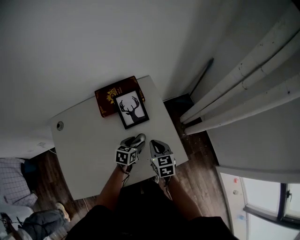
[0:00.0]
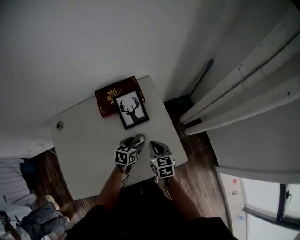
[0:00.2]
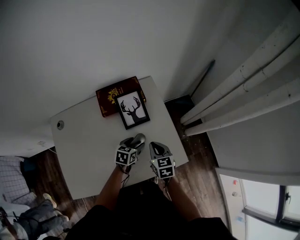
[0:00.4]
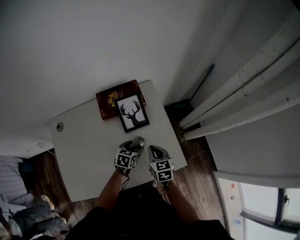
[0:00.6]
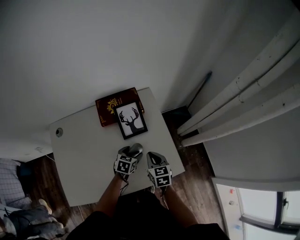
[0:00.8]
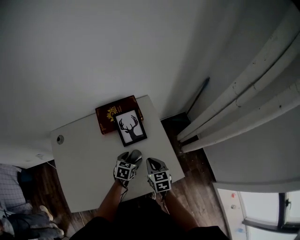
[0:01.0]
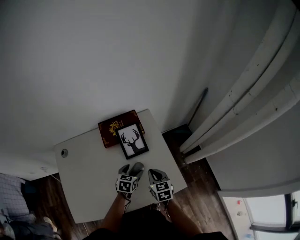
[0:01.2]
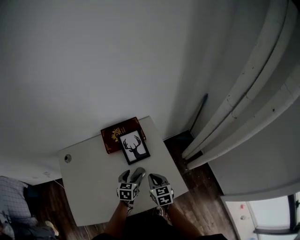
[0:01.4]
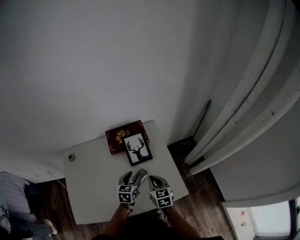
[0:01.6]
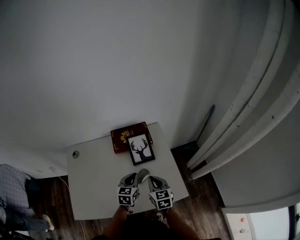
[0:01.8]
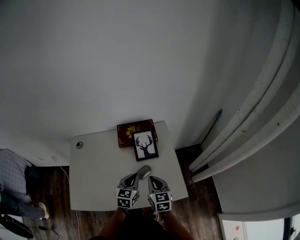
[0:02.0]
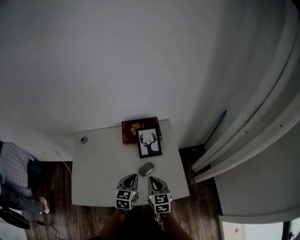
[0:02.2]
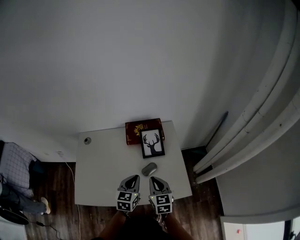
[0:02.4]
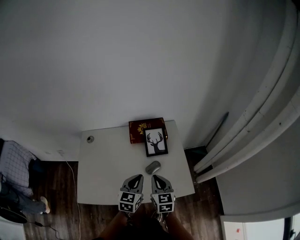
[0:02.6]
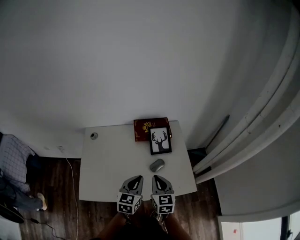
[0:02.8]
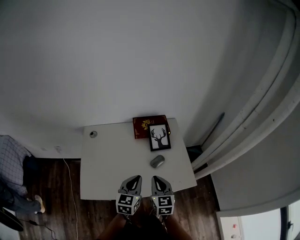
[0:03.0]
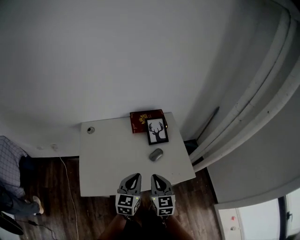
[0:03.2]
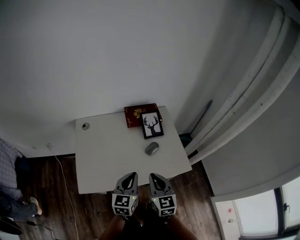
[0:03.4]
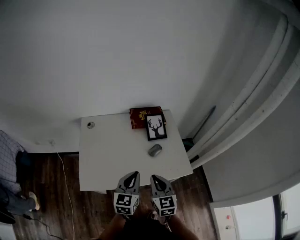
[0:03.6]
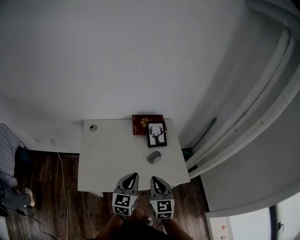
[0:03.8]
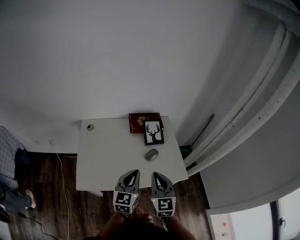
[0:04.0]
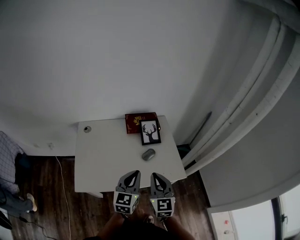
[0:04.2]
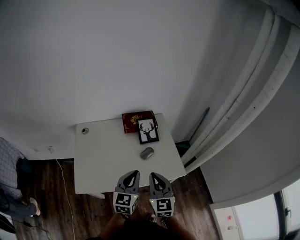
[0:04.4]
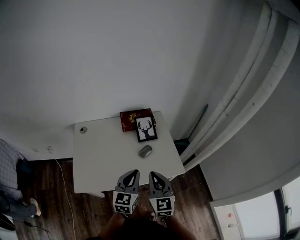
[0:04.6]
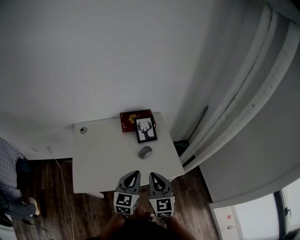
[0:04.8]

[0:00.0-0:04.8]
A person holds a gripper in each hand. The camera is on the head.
0.0 to 1.6 s: The left gripper travels upward by roughly 10 cm, and changes its angle by some 20 degrees.
1.6 to 3.2 s: The right gripper shifts some 25 cm backward, to the left and upward, while the left gripper heads backward, upward and to the left, covering roughly 25 cm, swivels about 20 degrees, and closes up.
3.2 to 4.8 s: The left gripper heads to the right, covering approximately 5 cm; the right gripper is displaced upward by roughly 5 cm.

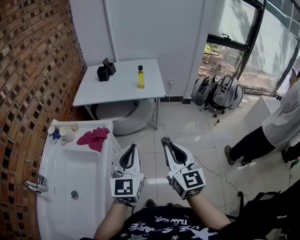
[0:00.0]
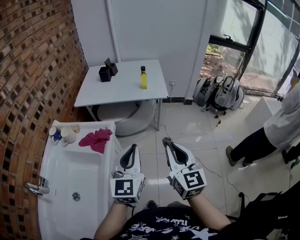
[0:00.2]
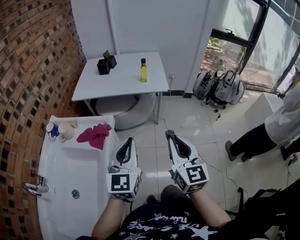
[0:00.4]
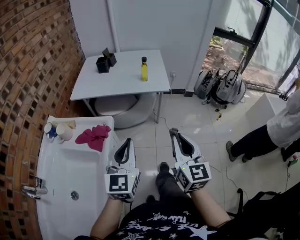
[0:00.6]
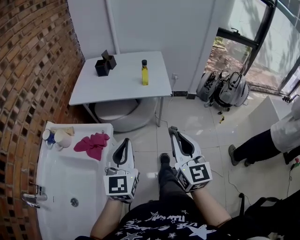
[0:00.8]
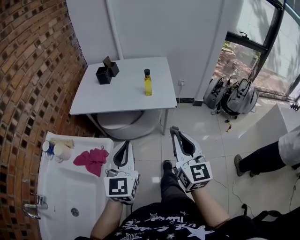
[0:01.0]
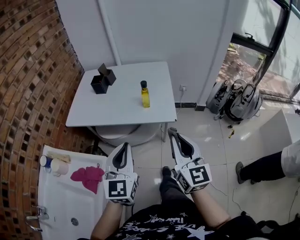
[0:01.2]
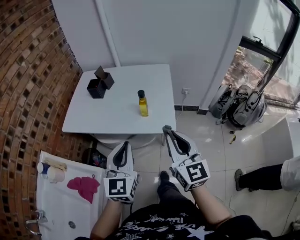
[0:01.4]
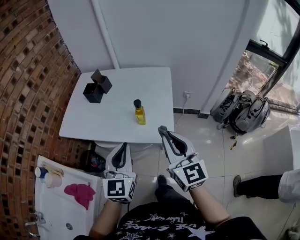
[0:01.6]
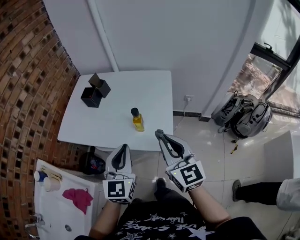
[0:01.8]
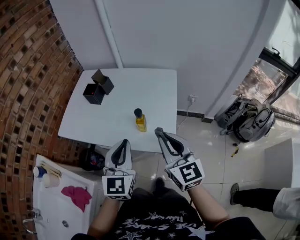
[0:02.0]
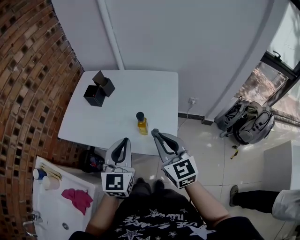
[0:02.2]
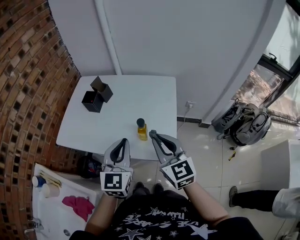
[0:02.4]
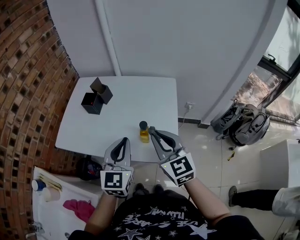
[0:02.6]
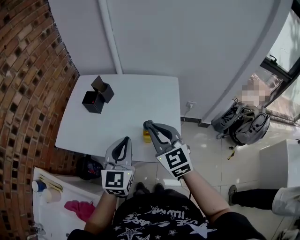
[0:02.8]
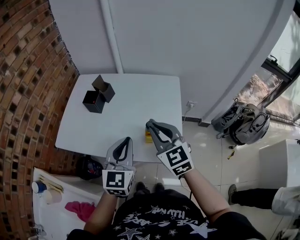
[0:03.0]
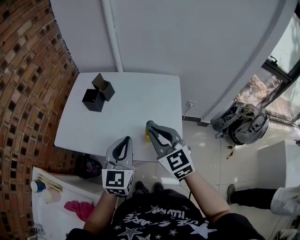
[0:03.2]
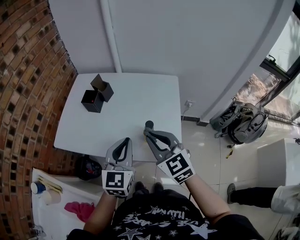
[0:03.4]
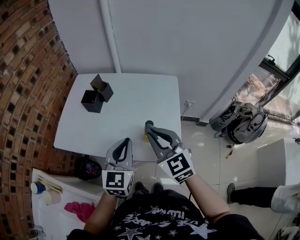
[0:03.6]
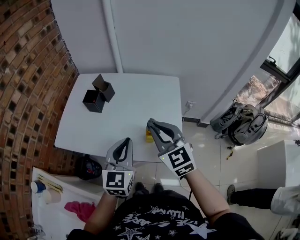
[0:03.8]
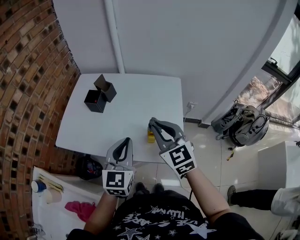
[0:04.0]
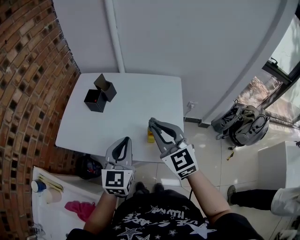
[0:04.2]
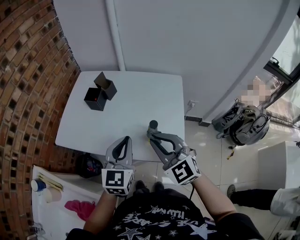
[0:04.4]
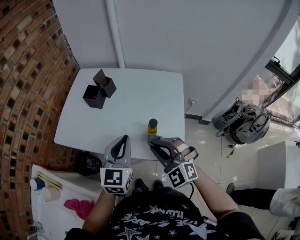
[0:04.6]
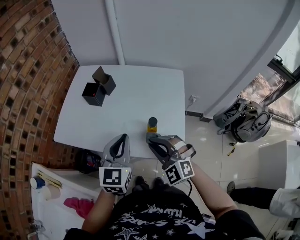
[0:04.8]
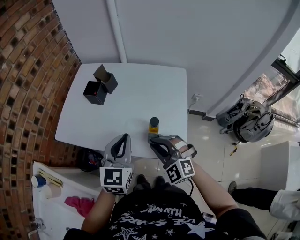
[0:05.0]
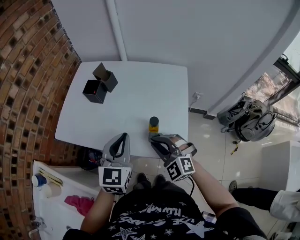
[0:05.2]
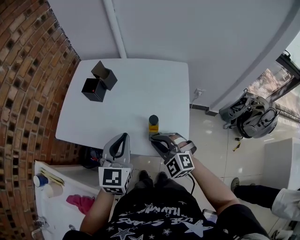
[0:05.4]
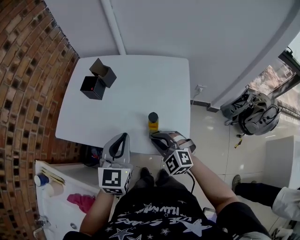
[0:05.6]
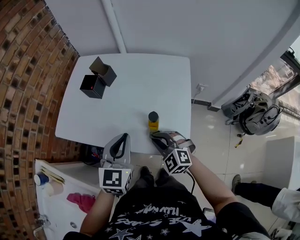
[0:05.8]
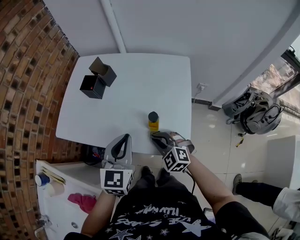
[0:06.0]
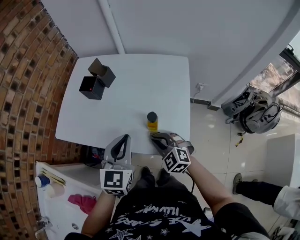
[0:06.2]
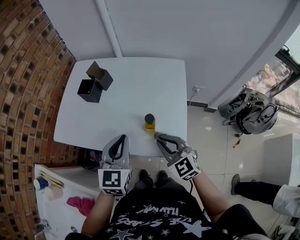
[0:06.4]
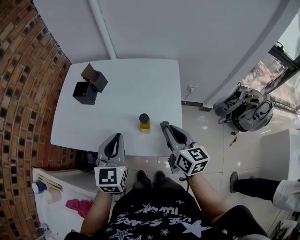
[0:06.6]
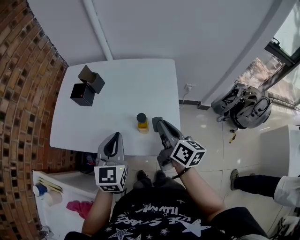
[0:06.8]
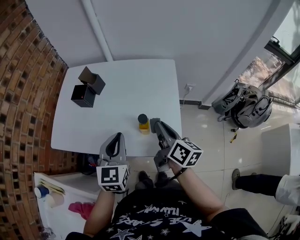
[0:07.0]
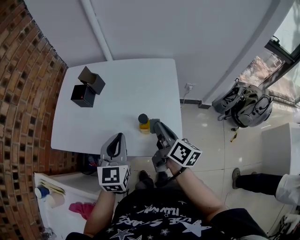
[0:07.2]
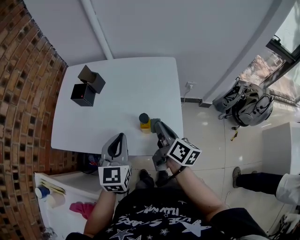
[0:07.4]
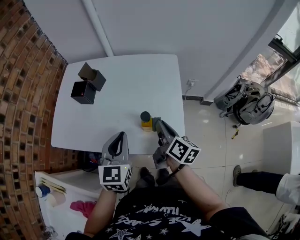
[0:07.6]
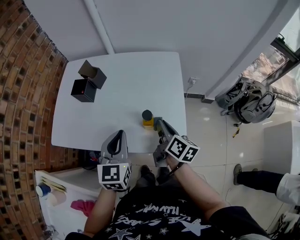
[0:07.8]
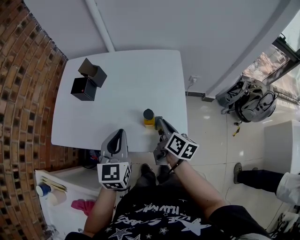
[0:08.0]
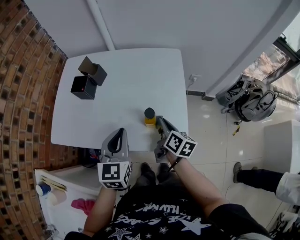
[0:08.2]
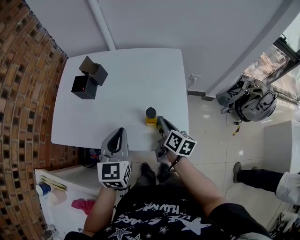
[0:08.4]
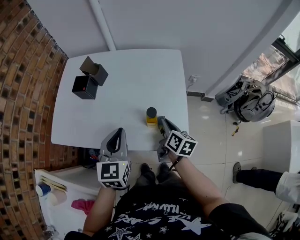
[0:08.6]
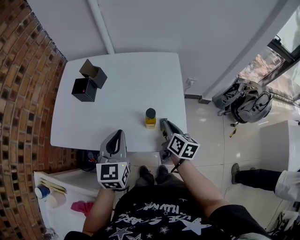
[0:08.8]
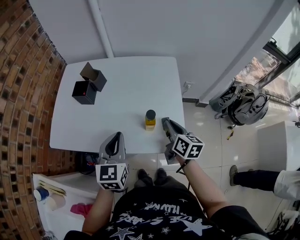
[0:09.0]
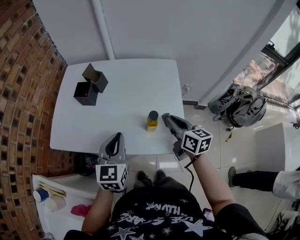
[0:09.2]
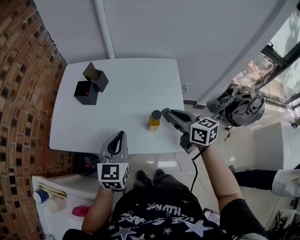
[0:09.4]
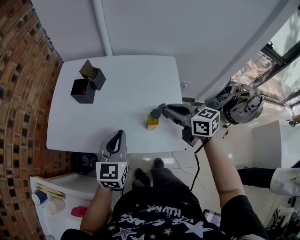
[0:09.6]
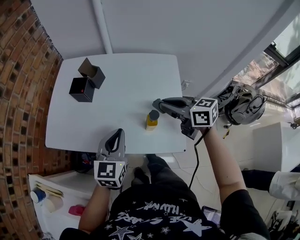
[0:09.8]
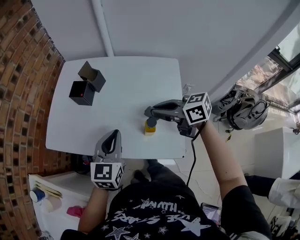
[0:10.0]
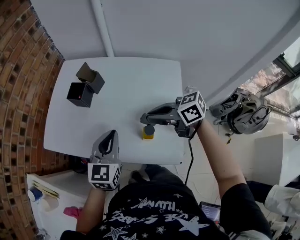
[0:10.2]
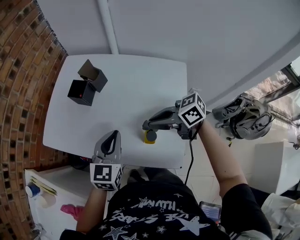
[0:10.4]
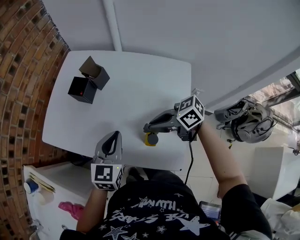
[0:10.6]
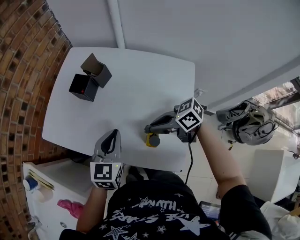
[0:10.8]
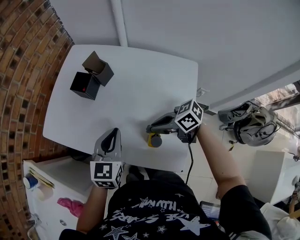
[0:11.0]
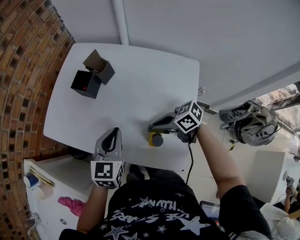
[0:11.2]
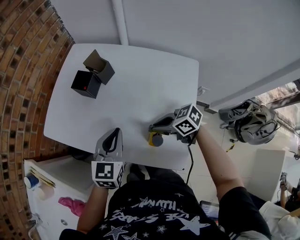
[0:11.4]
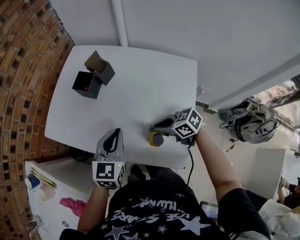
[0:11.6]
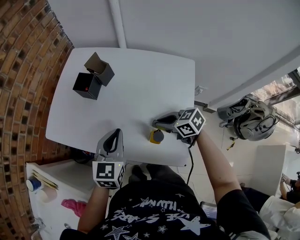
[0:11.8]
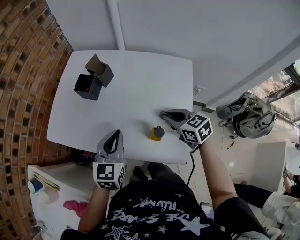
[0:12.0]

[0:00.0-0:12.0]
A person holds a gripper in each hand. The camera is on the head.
0.0 to 1.6 s: The grippers both shift forward by approximately 40 cm.
1.6 to 3.0 s: The left gripper moves forward, approximately 15 cm; the right gripper goes some 20 cm forward and to the left, and swivels about 20 degrees.
3.0 to 4.4 s: The right gripper shifts by some 5 cm.
4.4 to 6.0 s: The right gripper goes approximately 20 cm downward, and rotates roughly 20 degrees.
6.0 to 7.6 s: The right gripper heads to the right and upward, covering some 10 cm, and twists approximately 90 degrees clockwise, seen from behind.
9.0 to 10.4 s: The left gripper shifts by approximately 5 cm, while the right gripper changes place by approximately 10 cm, and swivels about 80 degrees.
10.4 to 12.0 s: The right gripper shifts approximately 5 cm downward, and rotates some 40 degrees.

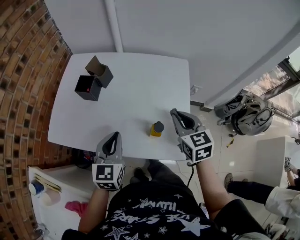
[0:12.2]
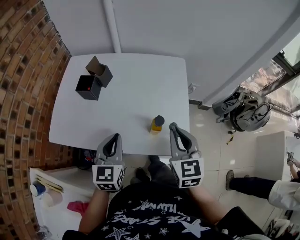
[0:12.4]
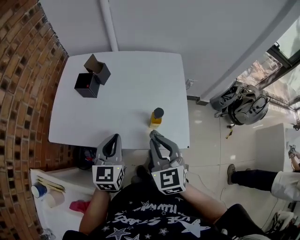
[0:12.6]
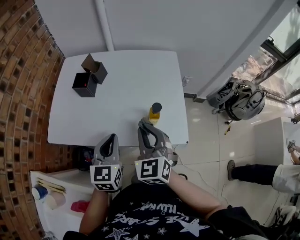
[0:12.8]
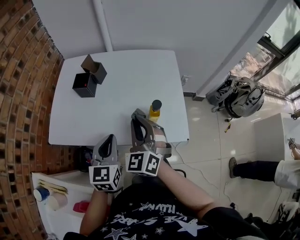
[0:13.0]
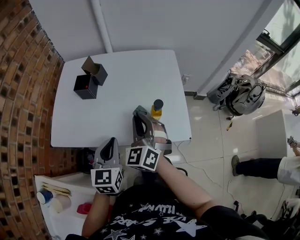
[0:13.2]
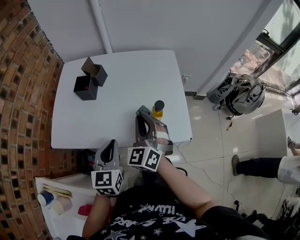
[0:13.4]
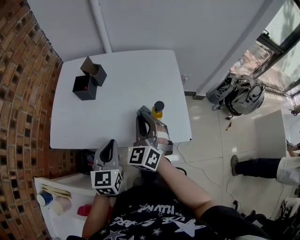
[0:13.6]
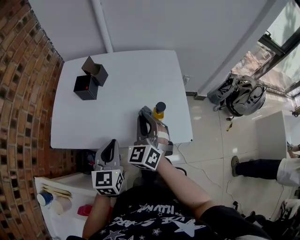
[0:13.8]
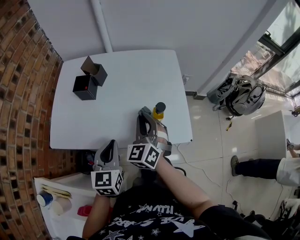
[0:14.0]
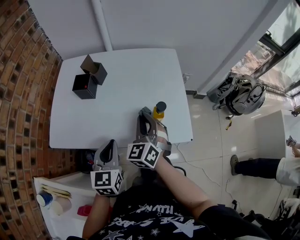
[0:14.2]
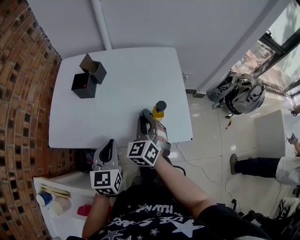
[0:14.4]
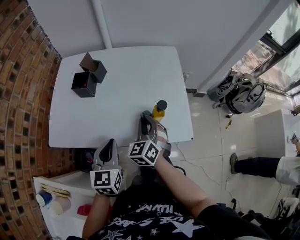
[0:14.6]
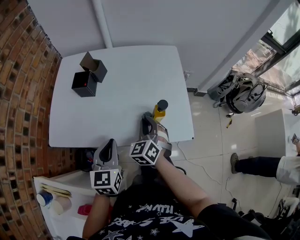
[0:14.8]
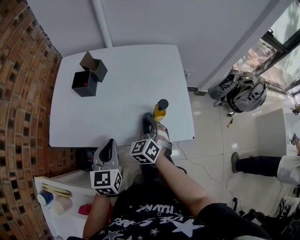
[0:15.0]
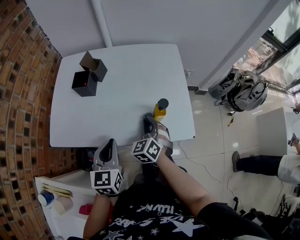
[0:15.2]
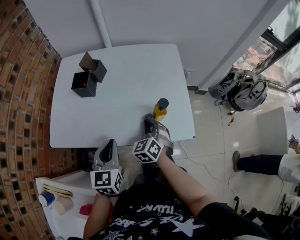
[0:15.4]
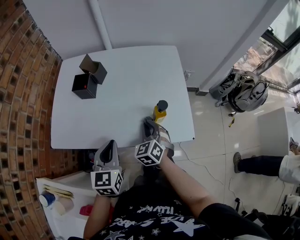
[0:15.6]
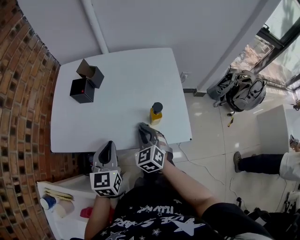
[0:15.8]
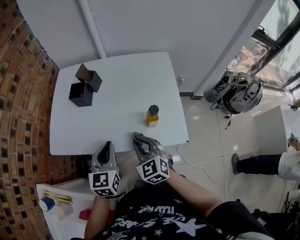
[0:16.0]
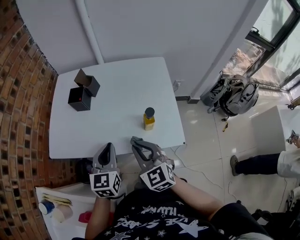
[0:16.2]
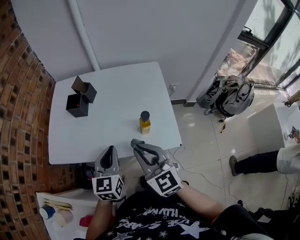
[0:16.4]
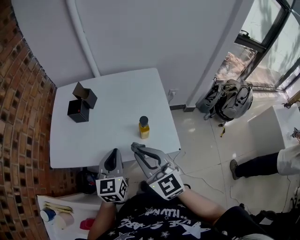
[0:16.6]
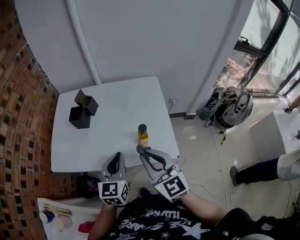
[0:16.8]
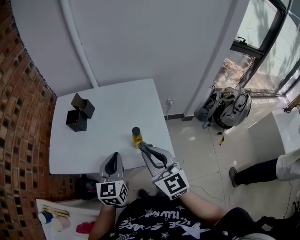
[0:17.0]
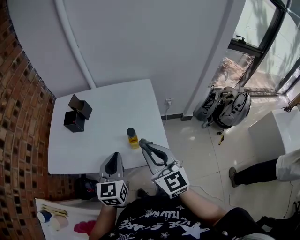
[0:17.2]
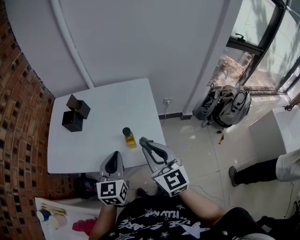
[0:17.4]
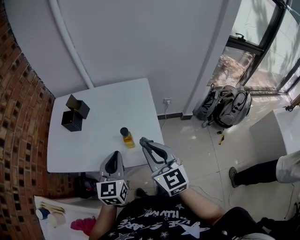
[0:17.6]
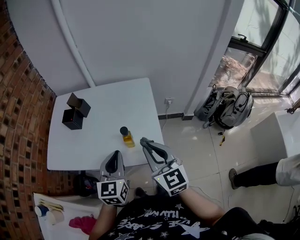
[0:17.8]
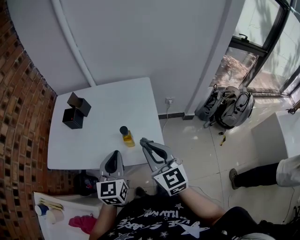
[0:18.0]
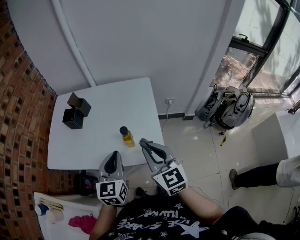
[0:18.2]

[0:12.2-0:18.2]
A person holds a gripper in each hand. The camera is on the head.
12.2 to 13.8 s: The right gripper goes some 15 cm to the left and backward, and rotates roughly 40 degrees. Meanwhile the left gripper travels backward by some 5 cm.
13.8 to 15.2 s: The right gripper moves downward, some 10 cm.
15.2 to 16.6 s: The right gripper goes about 20 cm upward and backward, and swivels about 40 degrees, while the left gripper moves to the right, approximately 5 cm.
16.6 to 18.2 s: Both grippers move to the right, some 10 cm.

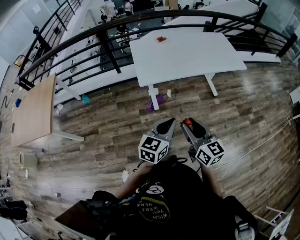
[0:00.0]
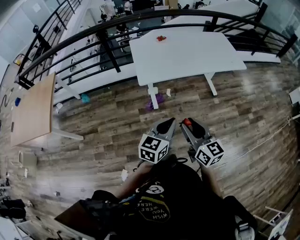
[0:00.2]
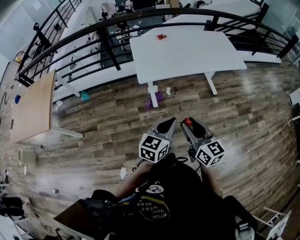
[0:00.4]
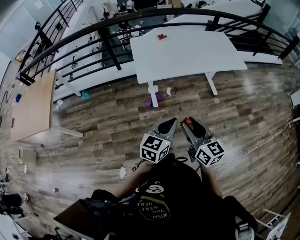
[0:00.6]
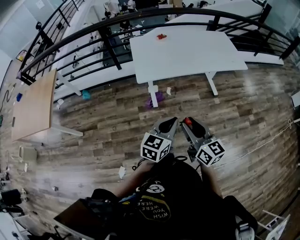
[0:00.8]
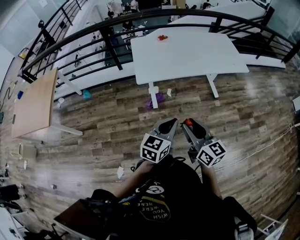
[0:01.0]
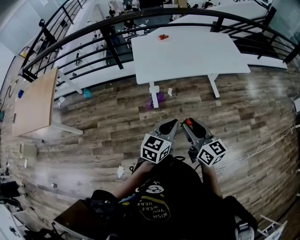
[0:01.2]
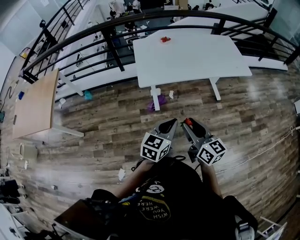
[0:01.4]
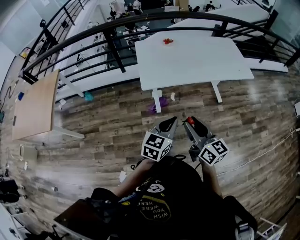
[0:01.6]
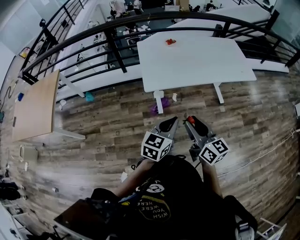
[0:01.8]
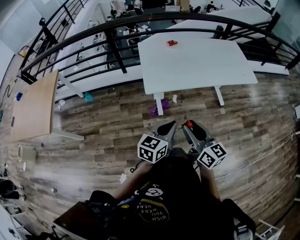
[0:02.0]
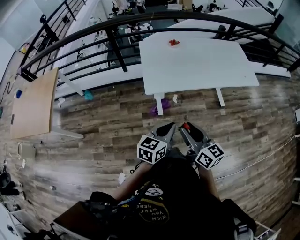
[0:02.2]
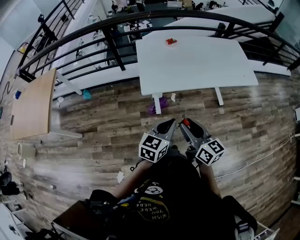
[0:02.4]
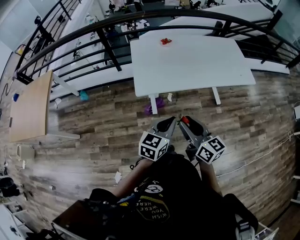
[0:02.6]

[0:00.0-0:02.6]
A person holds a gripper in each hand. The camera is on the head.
0.0 to 1.2 s: The grippers both shift to the right by approximately 5 cm.
1.2 to 2.6 s: The two grippers go roughly 15 cm forward.
